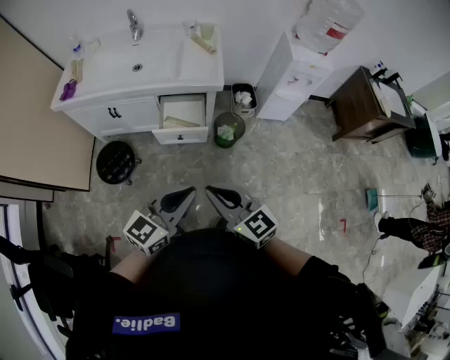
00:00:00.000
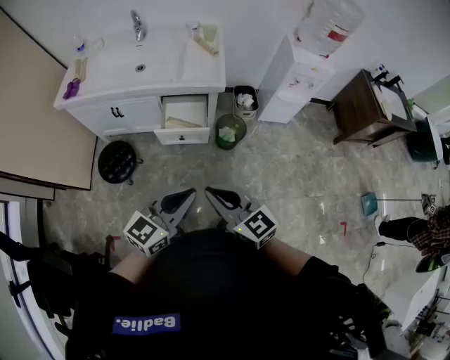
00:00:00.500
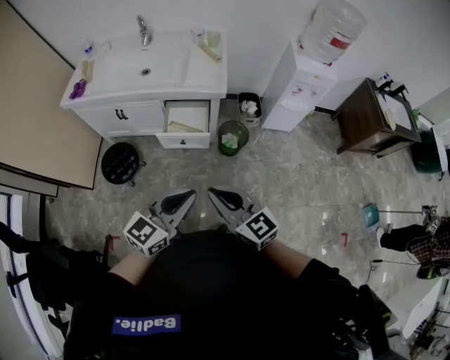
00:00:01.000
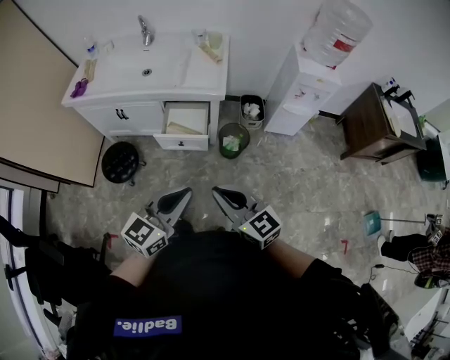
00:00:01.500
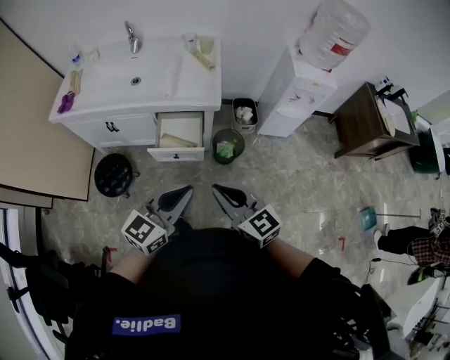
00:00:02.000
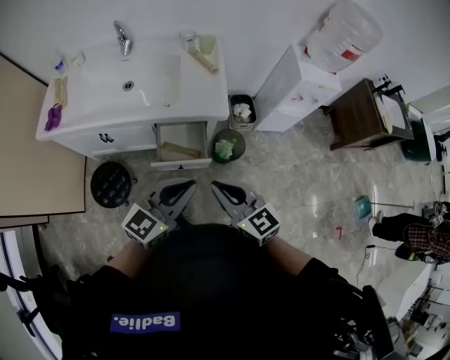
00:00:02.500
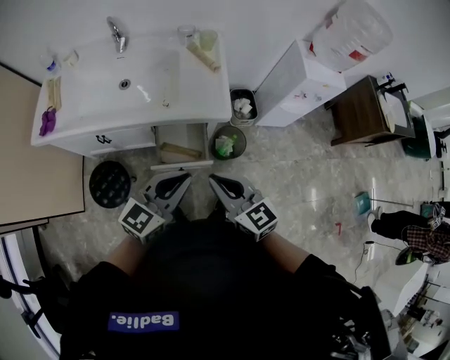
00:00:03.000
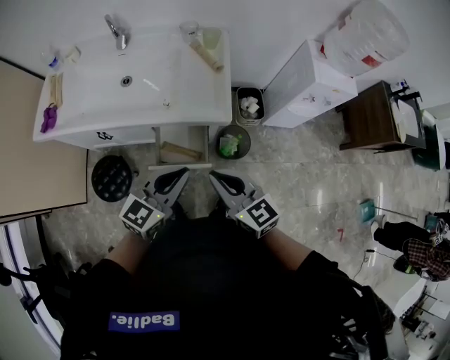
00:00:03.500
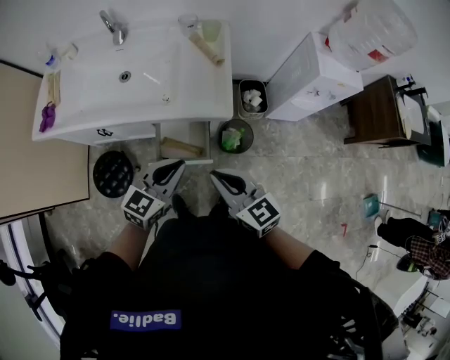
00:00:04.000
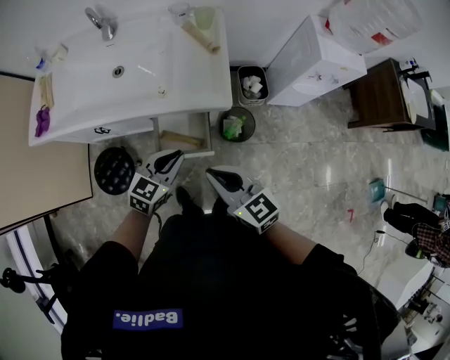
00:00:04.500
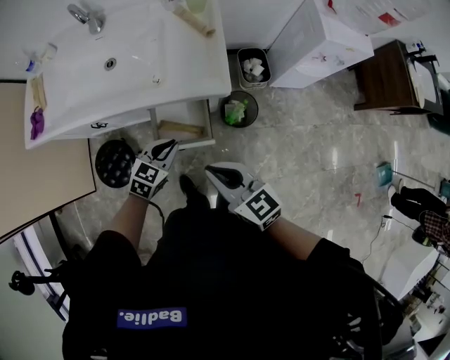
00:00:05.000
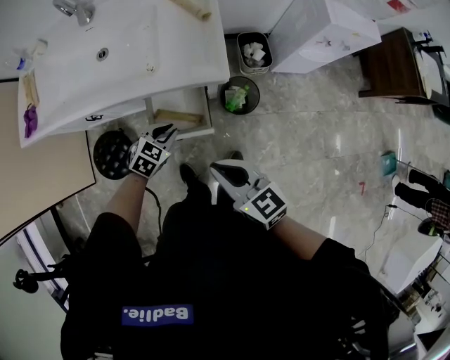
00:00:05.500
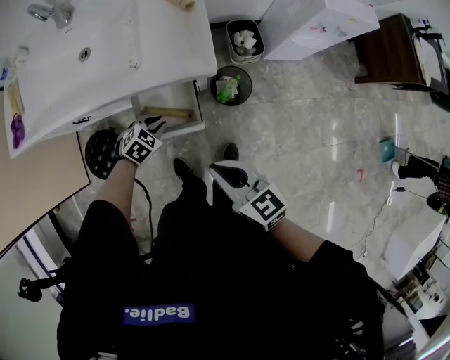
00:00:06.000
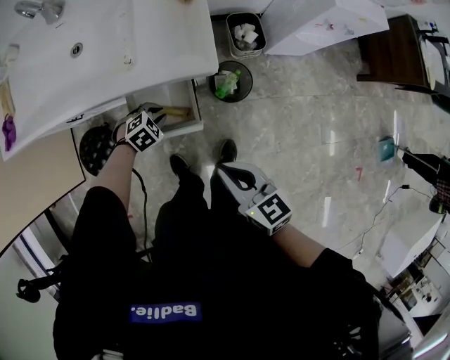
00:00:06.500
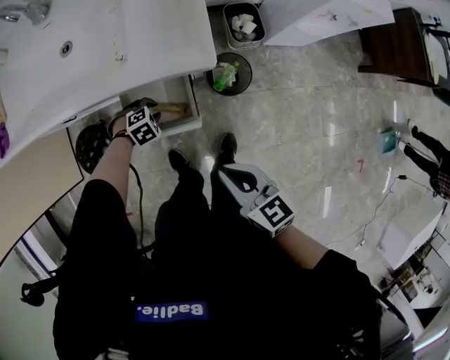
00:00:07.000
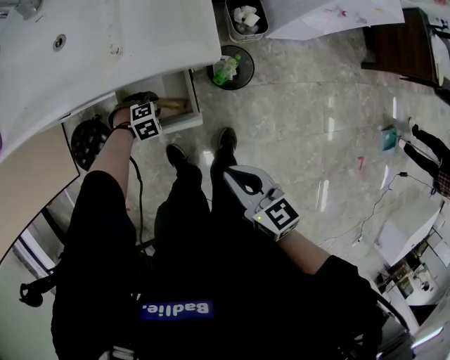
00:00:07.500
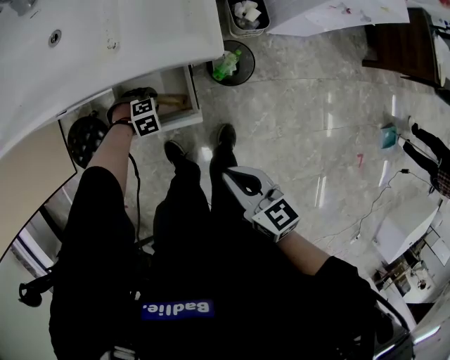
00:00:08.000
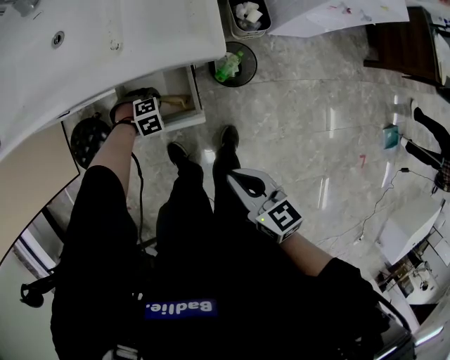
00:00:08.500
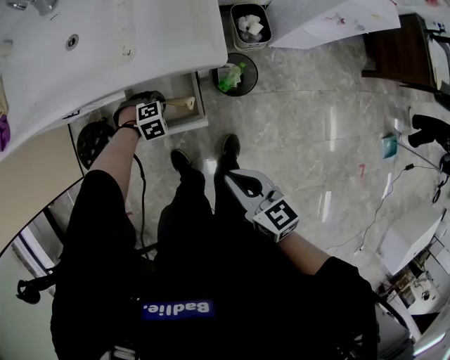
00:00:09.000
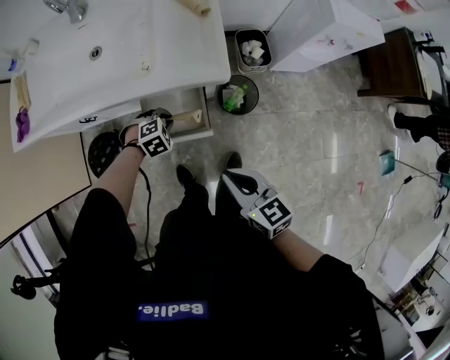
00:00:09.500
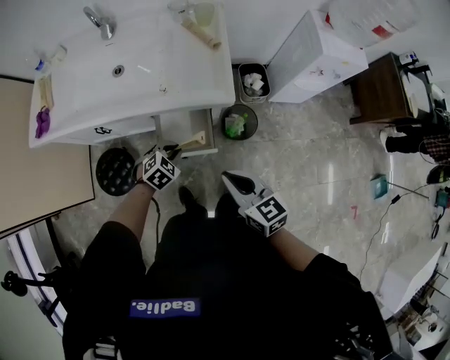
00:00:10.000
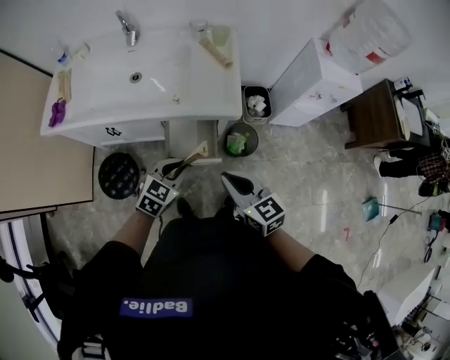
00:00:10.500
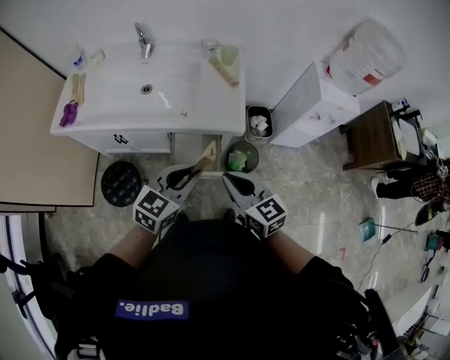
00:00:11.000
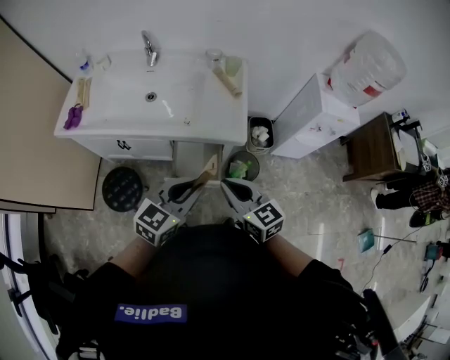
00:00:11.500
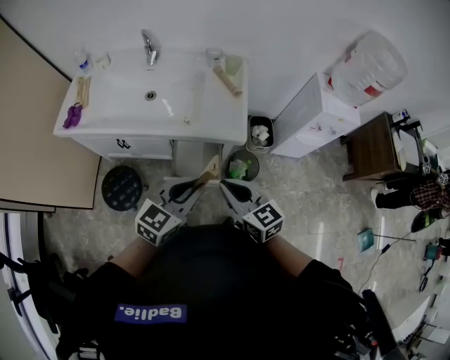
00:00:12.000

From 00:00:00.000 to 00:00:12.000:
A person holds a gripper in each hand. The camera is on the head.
From 00:00:00.000 to 00:00:02.000: The left gripper shifts some 10 cm forward, while the right gripper goes some 10 cm forward and to the right.
From 00:00:02.000 to 00:00:04.000: The right gripper shifts about 20 cm forward, while the left gripper travels forward and downward by about 25 cm.
From 00:00:04.000 to 00:00:06.000: The right gripper heads downward, covering about 10 cm, while the left gripper is displaced downward by some 30 cm, and tips its fingers downward by approximately 40 degrees.
From 00:00:06.000 to 00:00:08.000: The right gripper travels downward by roughly 10 cm; the left gripper moves downward, about 15 cm, and turns by approximately 40 degrees.
From 00:00:08.000 to 00:00:10.000: The left gripper moves upward, some 25 cm, and changes its angle by roughly 40 degrees; the right gripper shifts some 15 cm upward.
From 00:00:10.000 to 00:00:12.000: The right gripper shifts some 10 cm upward, while the left gripper travels upward by about 30 cm, and angles its fingers upward, by some 40 degrees.

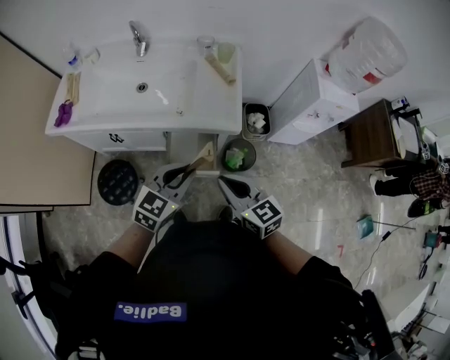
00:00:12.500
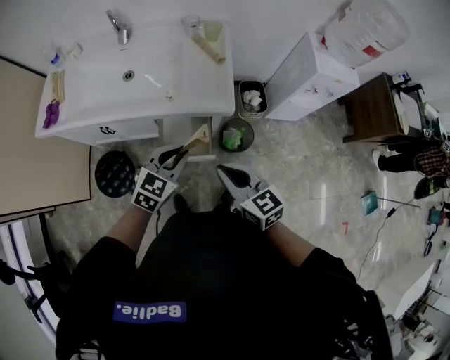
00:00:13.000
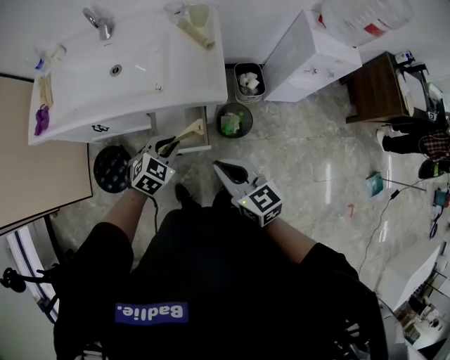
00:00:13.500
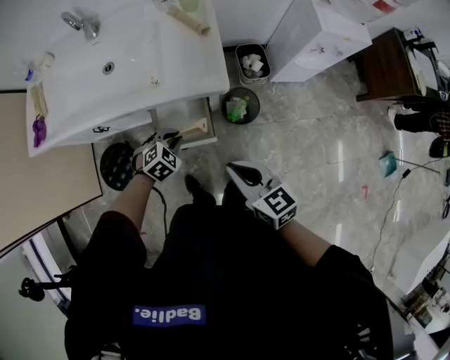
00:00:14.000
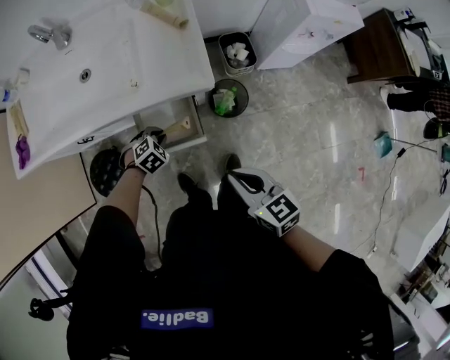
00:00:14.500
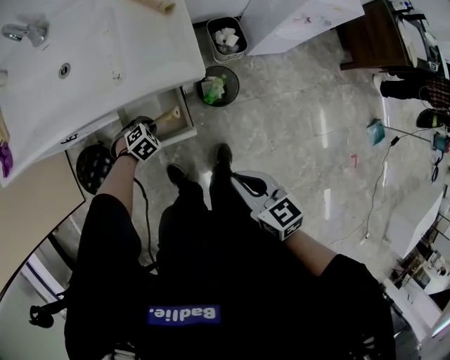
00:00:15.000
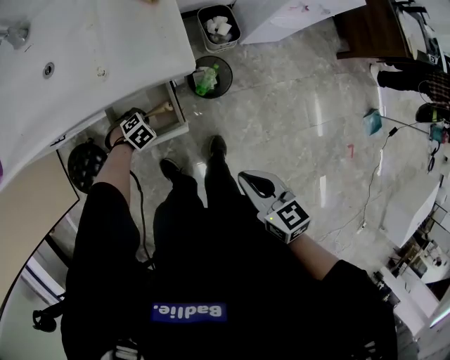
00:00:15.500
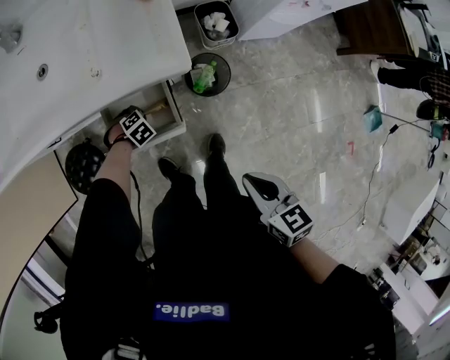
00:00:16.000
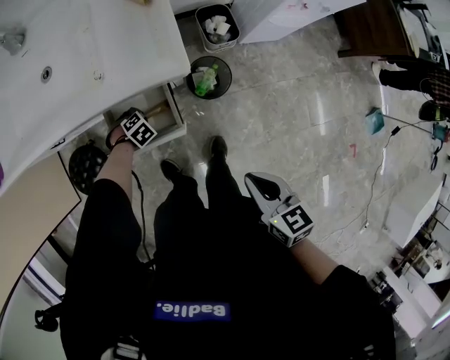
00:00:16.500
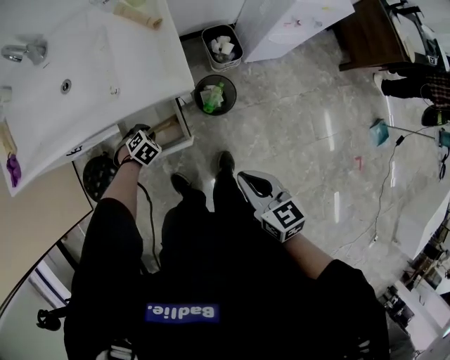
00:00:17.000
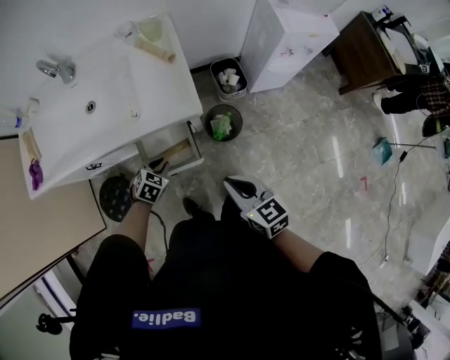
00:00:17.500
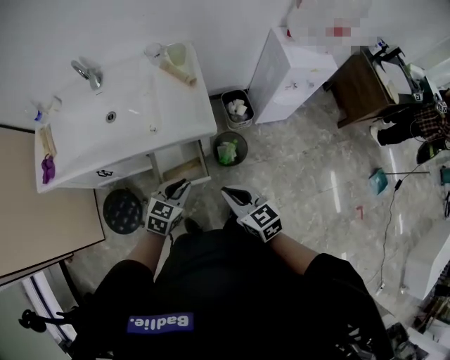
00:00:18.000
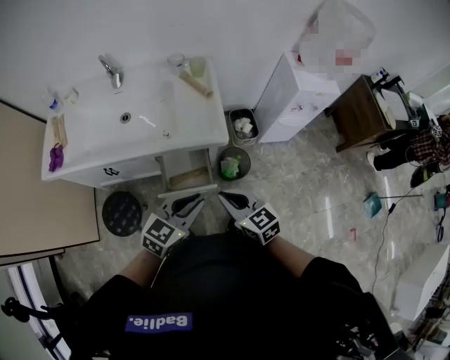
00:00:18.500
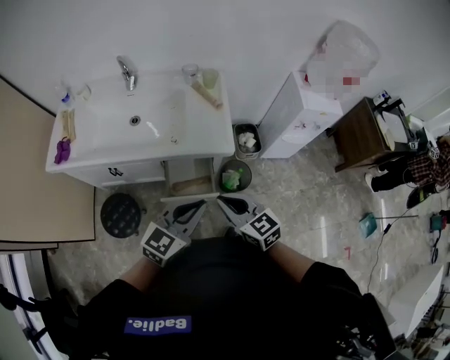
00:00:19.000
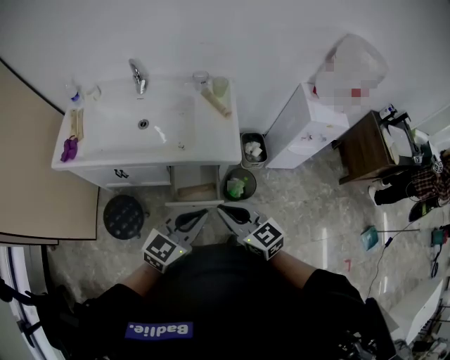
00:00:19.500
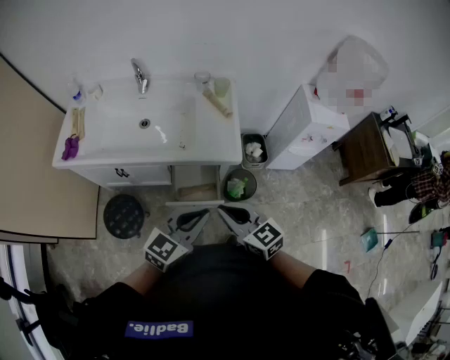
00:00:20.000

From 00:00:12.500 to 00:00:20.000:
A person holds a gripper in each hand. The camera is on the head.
From 00:00:12.500 to 00:00:14.500: The right gripper heads downward and to the right, covering roughly 15 cm. The left gripper travels downward by about 35 cm, and tilts its fingers about 50 degrees downward.
From 00:00:14.500 to 00:00:16.500: The left gripper heads downward, covering some 15 cm; the right gripper shifts by about 10 cm.
From 00:00:16.500 to 00:00:18.000: The right gripper heads upward, covering about 10 cm, and rotates roughly 20 degrees; the left gripper travels upward by approximately 35 cm, and tilts its fingers about 50 degrees upward.
From 00:00:18.000 to 00:00:20.000: The right gripper heads upward and to the left, covering approximately 15 cm; the left gripper moves upward, roughly 20 cm, and turns by some 20 degrees.

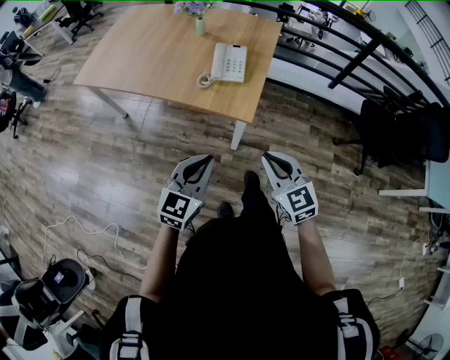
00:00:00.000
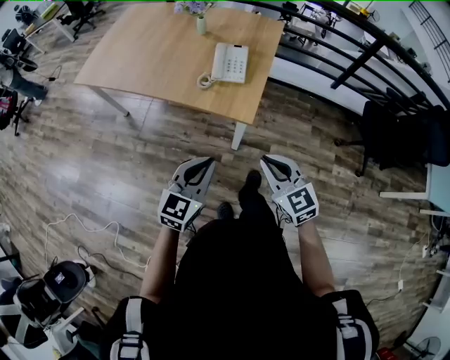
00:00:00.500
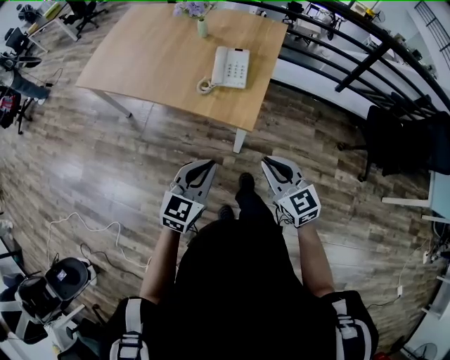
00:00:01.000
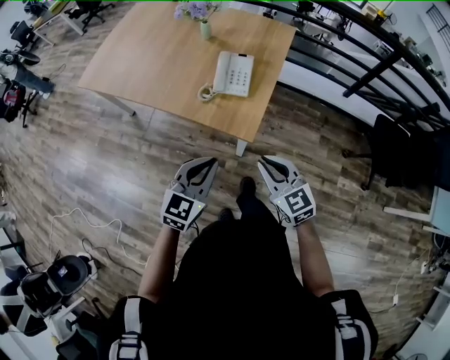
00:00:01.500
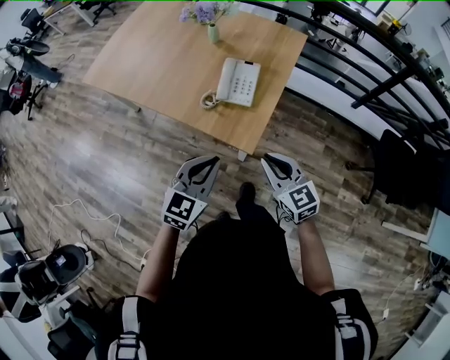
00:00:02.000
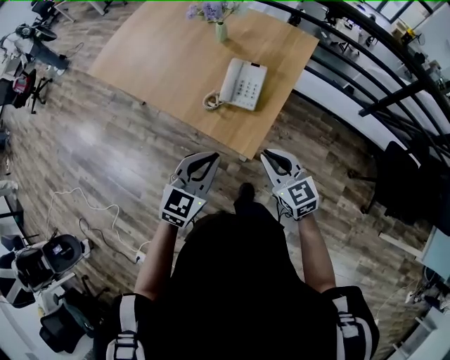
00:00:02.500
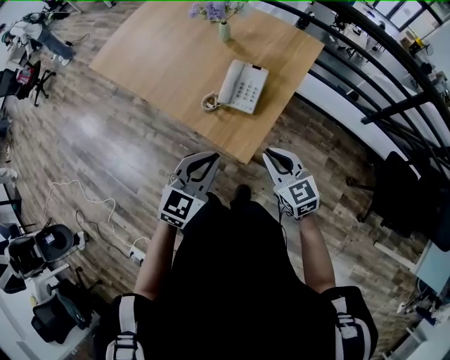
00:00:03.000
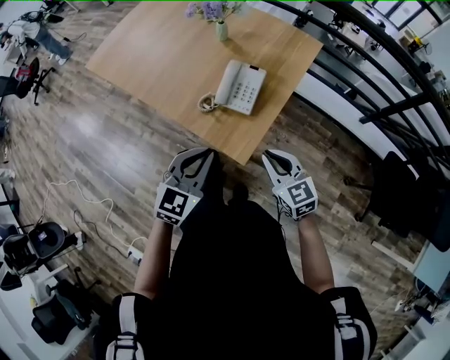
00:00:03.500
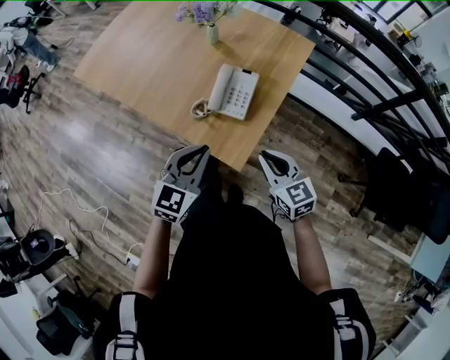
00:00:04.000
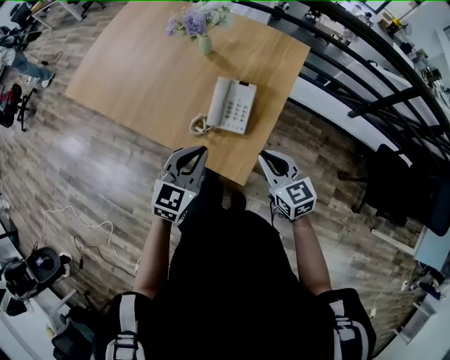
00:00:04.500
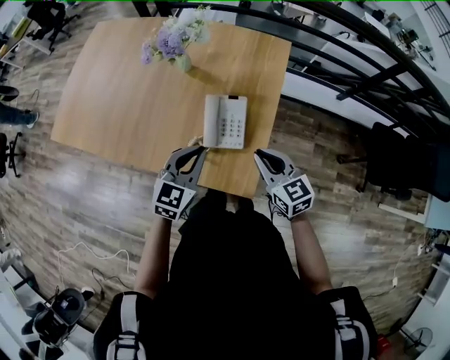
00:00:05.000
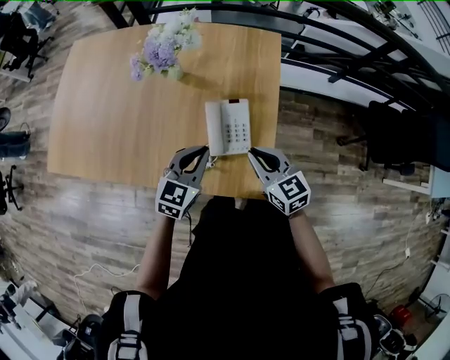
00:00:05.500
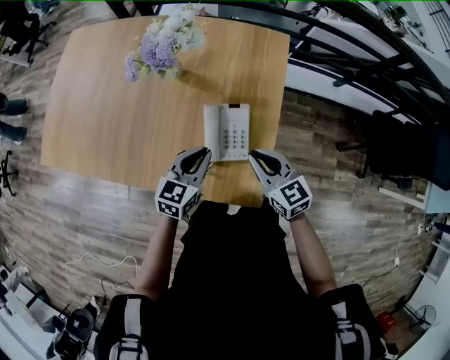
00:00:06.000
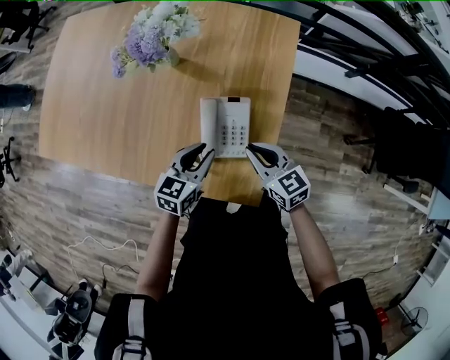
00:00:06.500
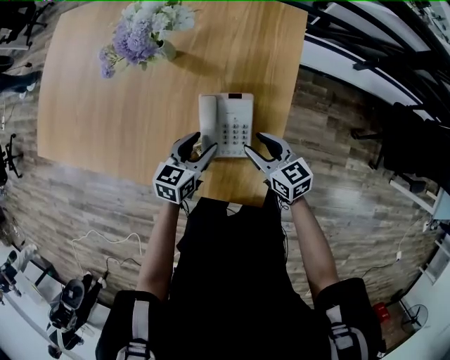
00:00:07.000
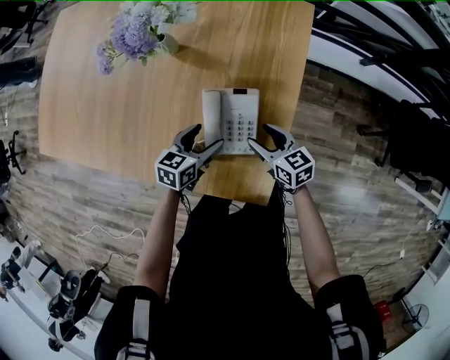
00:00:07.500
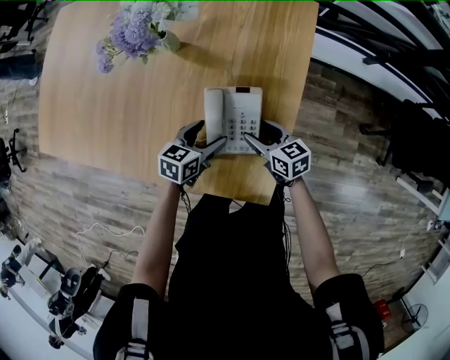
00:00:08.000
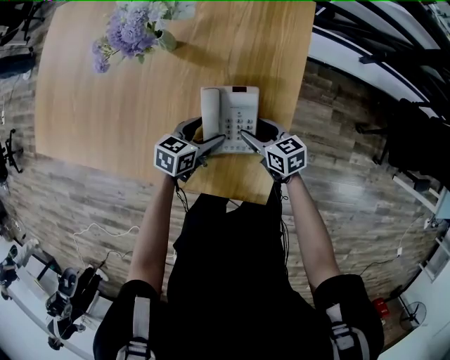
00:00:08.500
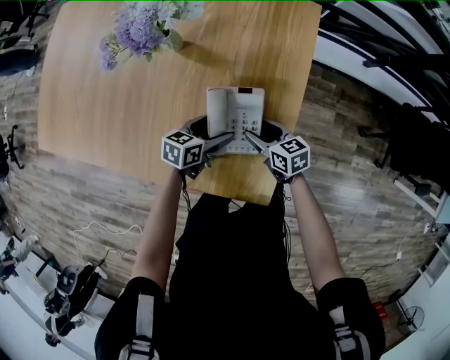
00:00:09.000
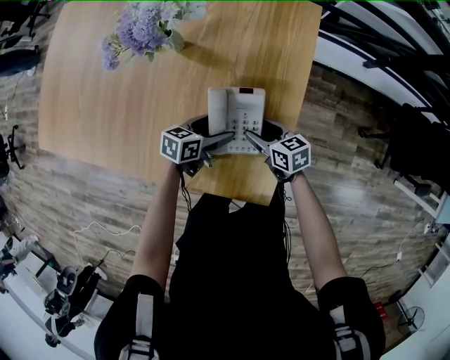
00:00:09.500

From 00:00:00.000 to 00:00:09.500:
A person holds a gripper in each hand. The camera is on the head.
From 00:00:00.000 to 00:00:02.000: The left gripper travels forward and to the right by some 15 cm. The right gripper moves forward, roughly 20 cm.
From 00:00:02.000 to 00:00:04.000: The two grippers go approximately 10 cm forward.
From 00:00:04.000 to 00:00:05.500: The left gripper heads forward, covering approximately 20 cm, and rotates some 20 degrees, while the right gripper is displaced forward and to the left by approximately 20 cm, and changes its angle by about 20 degrees.
From 00:00:05.500 to 00:00:07.500: The two grippers go roughly 20 cm downward. The right gripper opens. The left gripper swivels approximately 30 degrees, and opens its fingers.
From 00:00:07.500 to 00:00:09.500: The grippers make only small movements.
